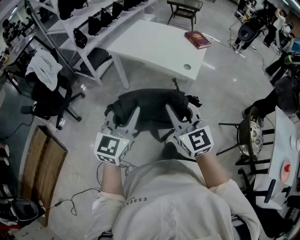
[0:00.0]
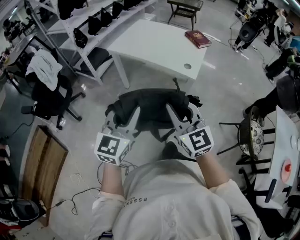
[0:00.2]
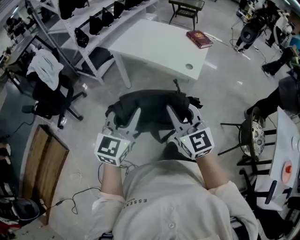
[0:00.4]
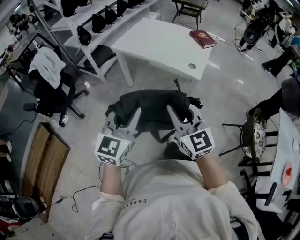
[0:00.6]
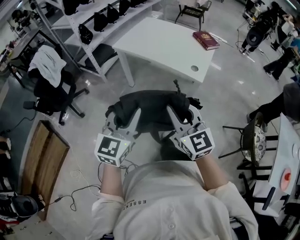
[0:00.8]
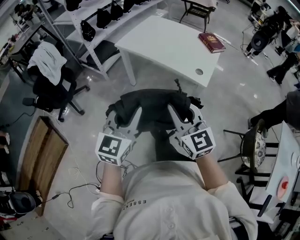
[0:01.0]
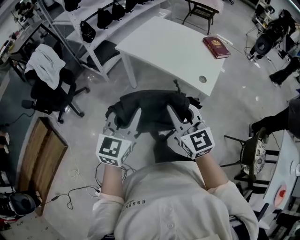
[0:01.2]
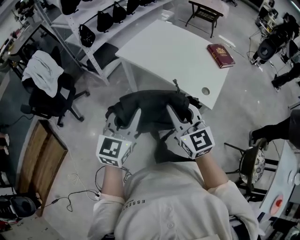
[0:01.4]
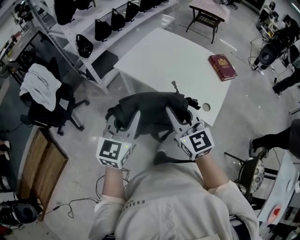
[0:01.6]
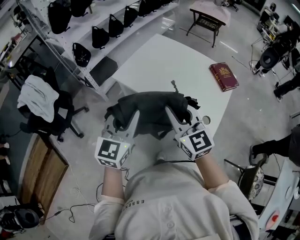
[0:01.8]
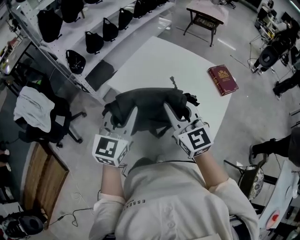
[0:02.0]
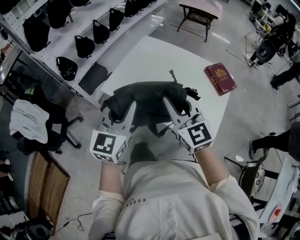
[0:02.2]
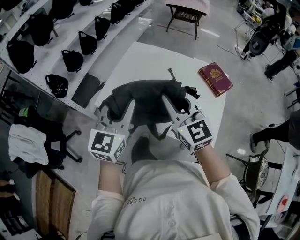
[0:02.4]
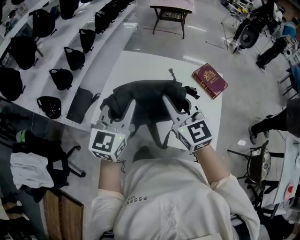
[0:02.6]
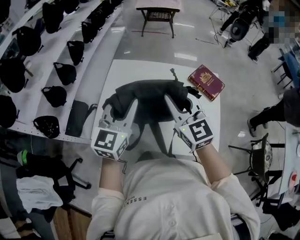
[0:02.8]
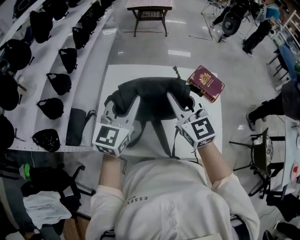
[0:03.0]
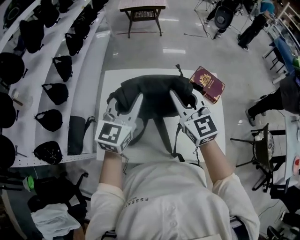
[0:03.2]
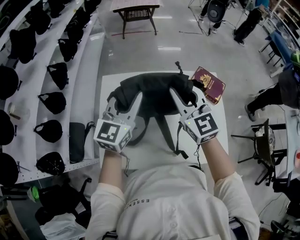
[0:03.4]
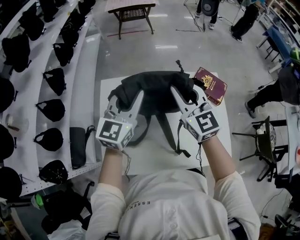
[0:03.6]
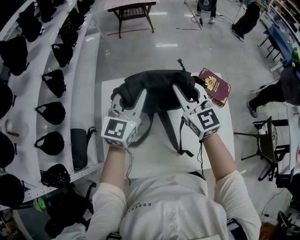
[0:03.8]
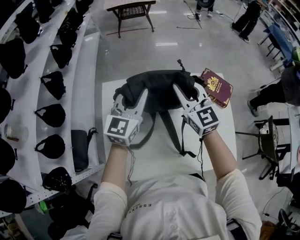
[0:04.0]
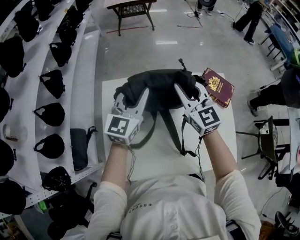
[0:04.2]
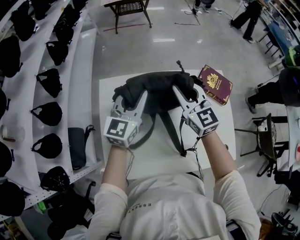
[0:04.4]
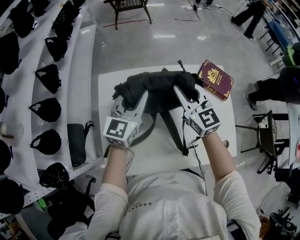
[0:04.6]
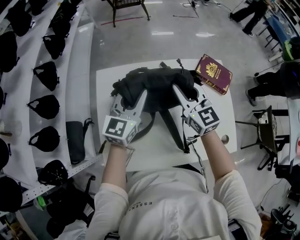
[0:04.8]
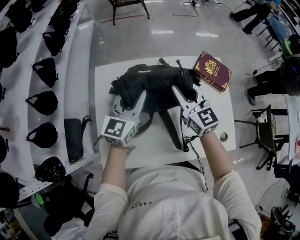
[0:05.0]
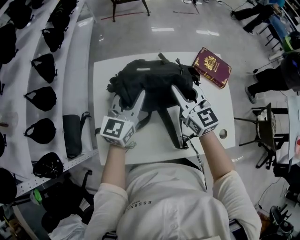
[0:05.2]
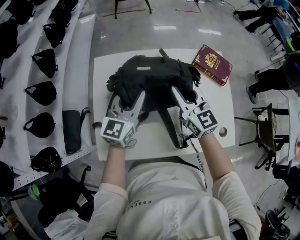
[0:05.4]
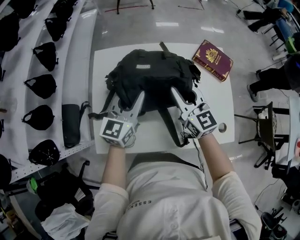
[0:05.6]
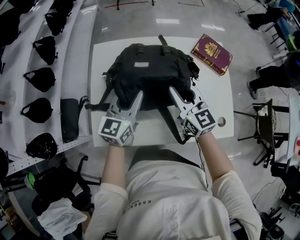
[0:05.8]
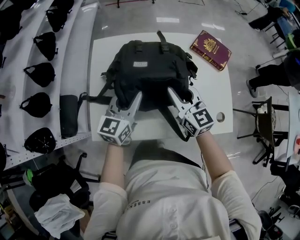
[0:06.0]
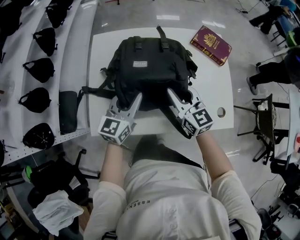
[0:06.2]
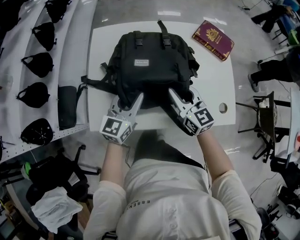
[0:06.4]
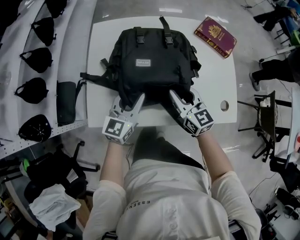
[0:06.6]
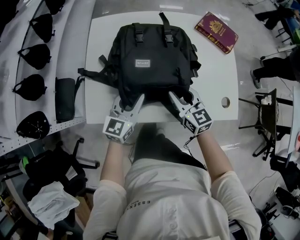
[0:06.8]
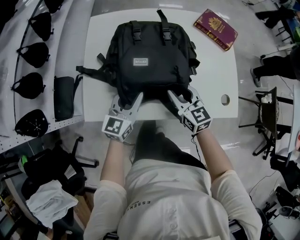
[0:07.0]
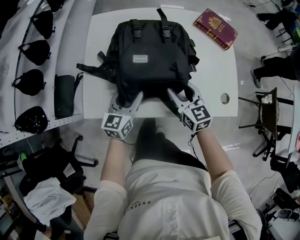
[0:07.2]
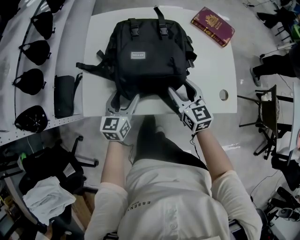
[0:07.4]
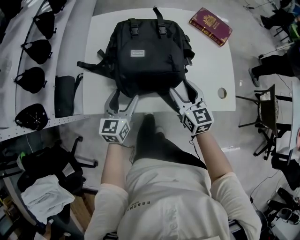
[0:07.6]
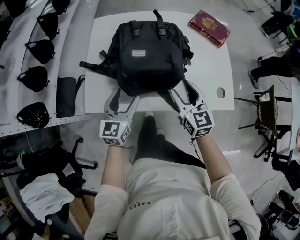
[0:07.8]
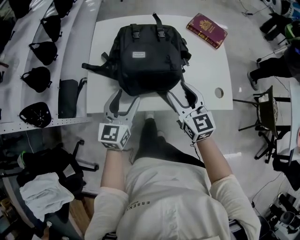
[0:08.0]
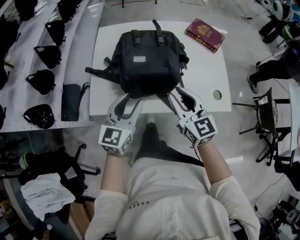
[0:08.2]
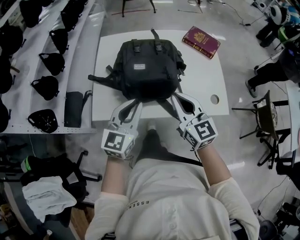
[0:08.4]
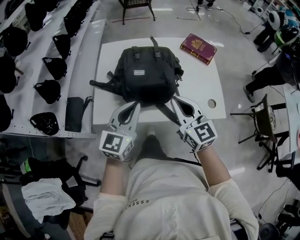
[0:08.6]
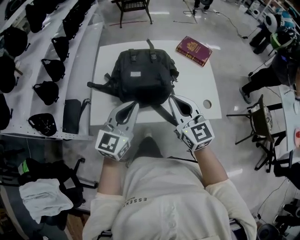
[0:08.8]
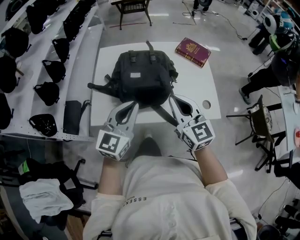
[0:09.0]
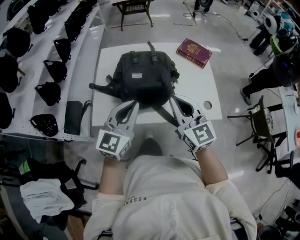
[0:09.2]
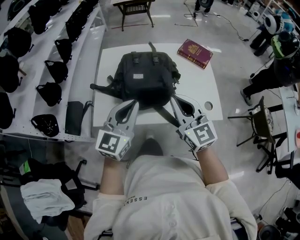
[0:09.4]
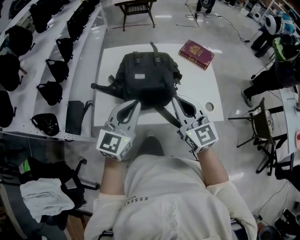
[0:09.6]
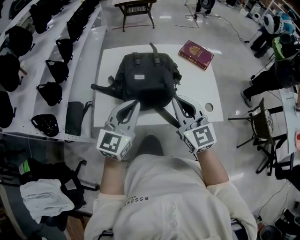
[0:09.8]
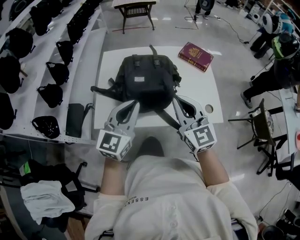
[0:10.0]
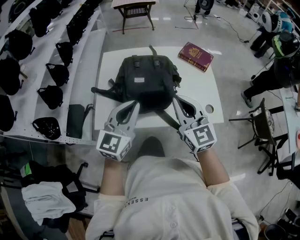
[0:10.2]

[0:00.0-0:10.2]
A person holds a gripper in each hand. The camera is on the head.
0:00.0 to 0:01.4: Both grippers move forward, about 20 cm.
0:01.4 to 0:03.0: Both grippers are carried approximately 50 cm. The left gripper changes its angle by roughly 30 degrees; the right gripper turns by some 30 degrees.
0:03.0 to 0:04.4: Both grippers travel together forward and downward, approximately 20 cm.
0:04.4 to 0:05.8: Both grippers move backward and downward, about 15 cm.
0:05.8 to 0:07.2: Both grippers travel together downward and backward, some 15 cm. The right gripper opens its fingers.
0:07.2 to 0:08.8: The two grippers go roughly 20 cm upward and backward. The left gripper rotates about 20 degrees, and closes. The right gripper closes its fingers.
0:08.8 to 0:10.2: The grippers move only a little.

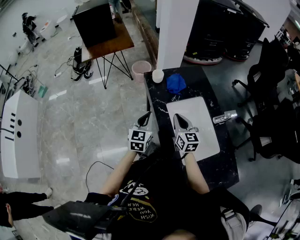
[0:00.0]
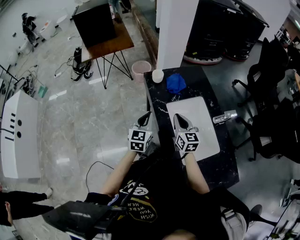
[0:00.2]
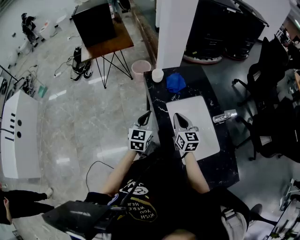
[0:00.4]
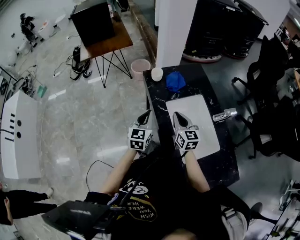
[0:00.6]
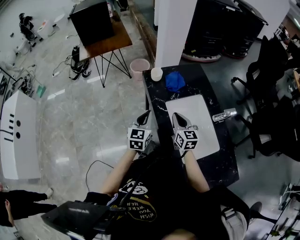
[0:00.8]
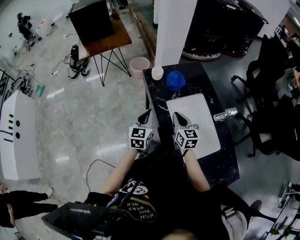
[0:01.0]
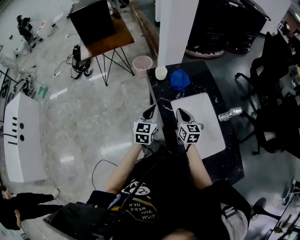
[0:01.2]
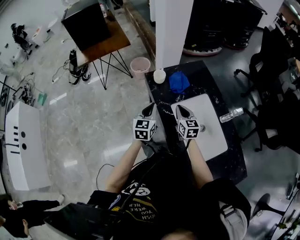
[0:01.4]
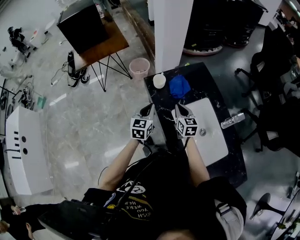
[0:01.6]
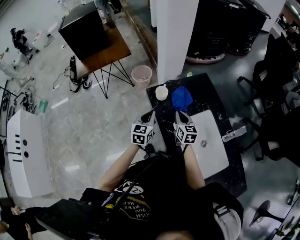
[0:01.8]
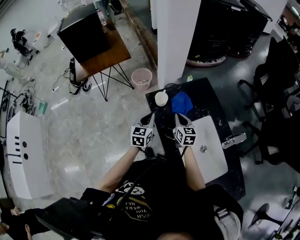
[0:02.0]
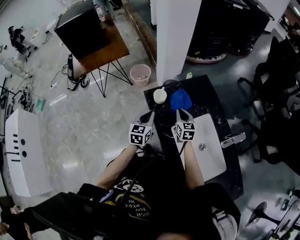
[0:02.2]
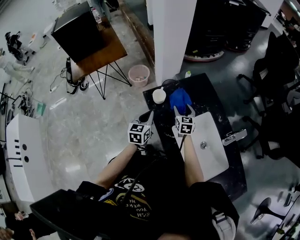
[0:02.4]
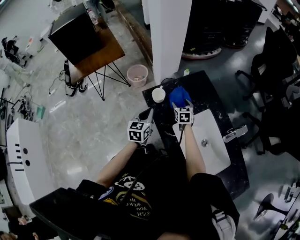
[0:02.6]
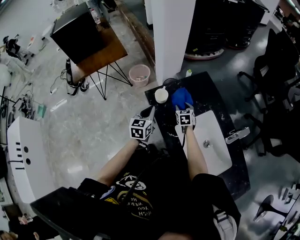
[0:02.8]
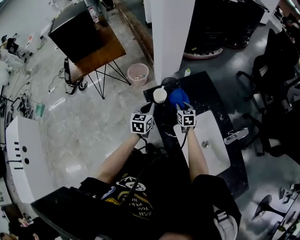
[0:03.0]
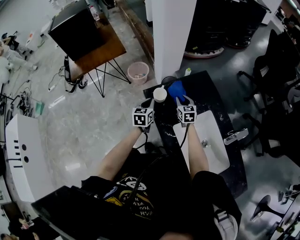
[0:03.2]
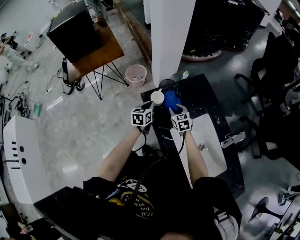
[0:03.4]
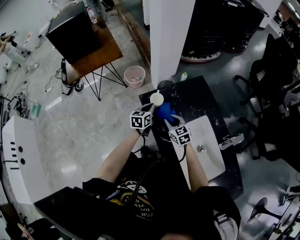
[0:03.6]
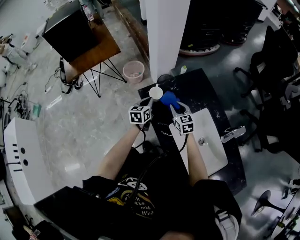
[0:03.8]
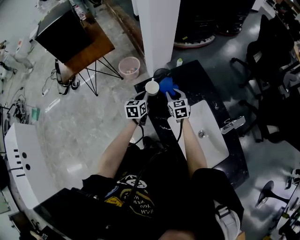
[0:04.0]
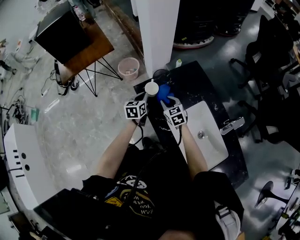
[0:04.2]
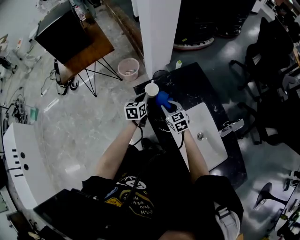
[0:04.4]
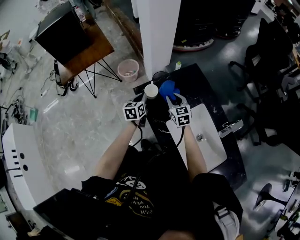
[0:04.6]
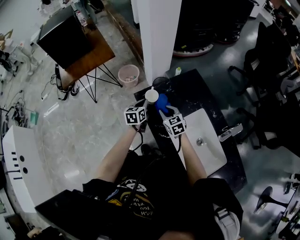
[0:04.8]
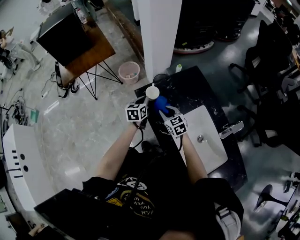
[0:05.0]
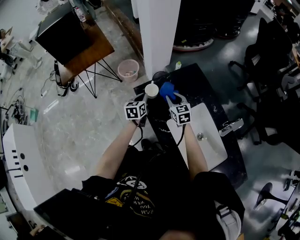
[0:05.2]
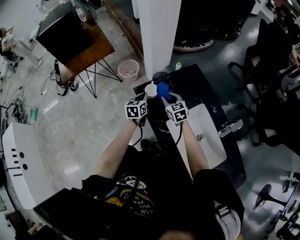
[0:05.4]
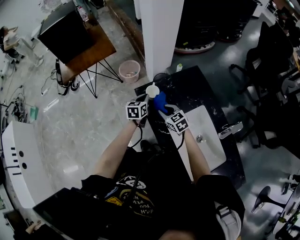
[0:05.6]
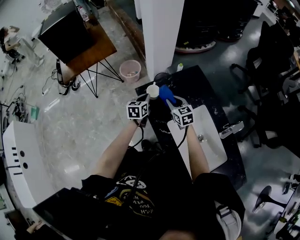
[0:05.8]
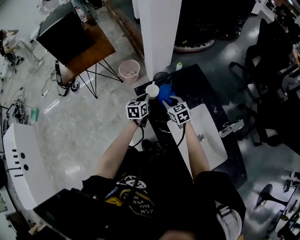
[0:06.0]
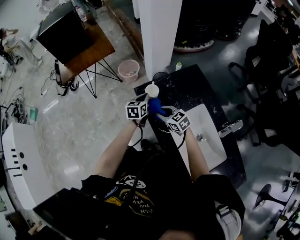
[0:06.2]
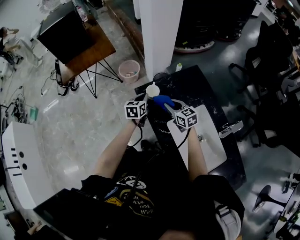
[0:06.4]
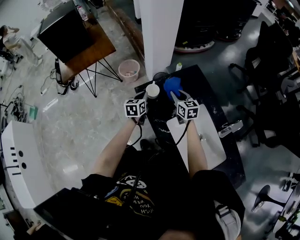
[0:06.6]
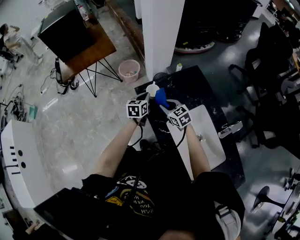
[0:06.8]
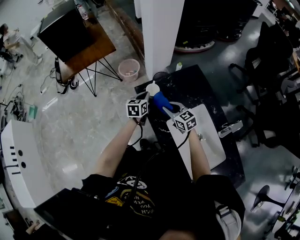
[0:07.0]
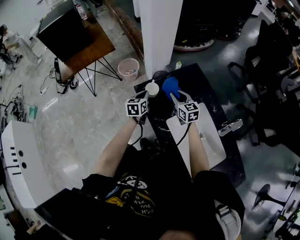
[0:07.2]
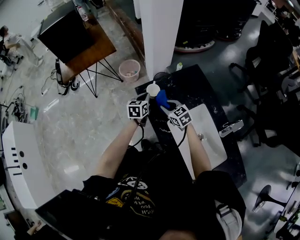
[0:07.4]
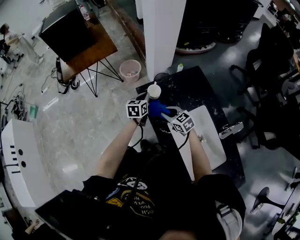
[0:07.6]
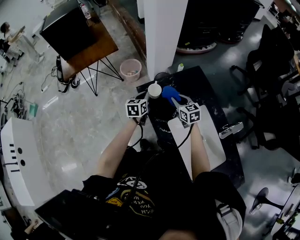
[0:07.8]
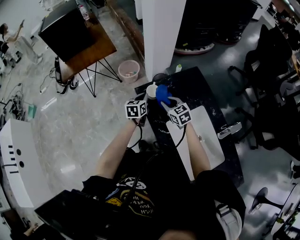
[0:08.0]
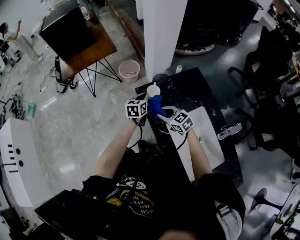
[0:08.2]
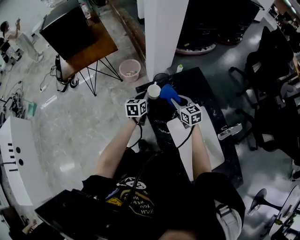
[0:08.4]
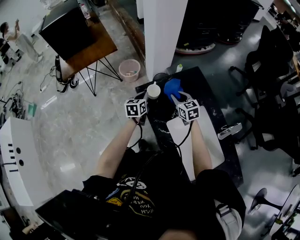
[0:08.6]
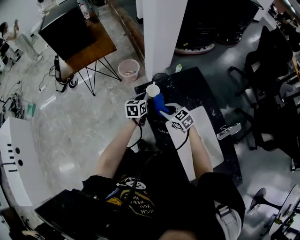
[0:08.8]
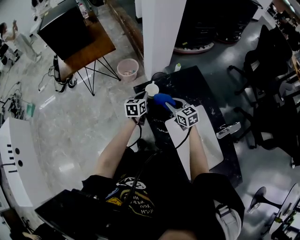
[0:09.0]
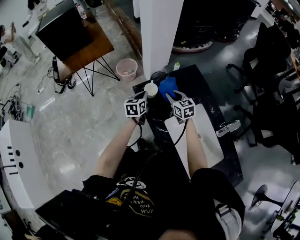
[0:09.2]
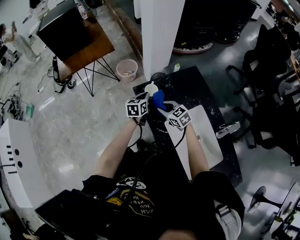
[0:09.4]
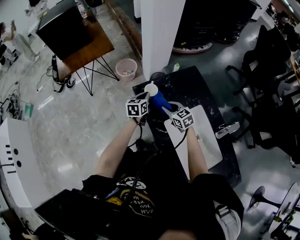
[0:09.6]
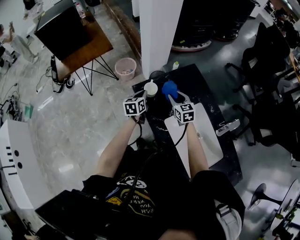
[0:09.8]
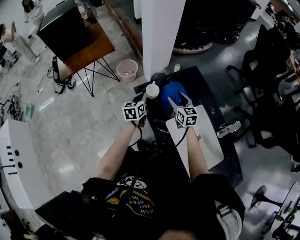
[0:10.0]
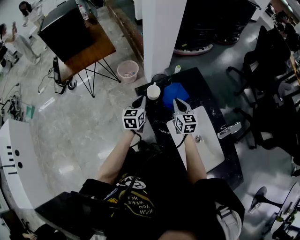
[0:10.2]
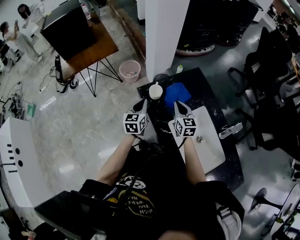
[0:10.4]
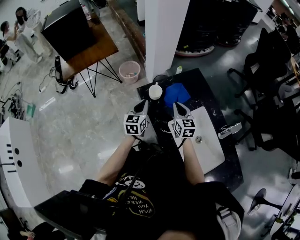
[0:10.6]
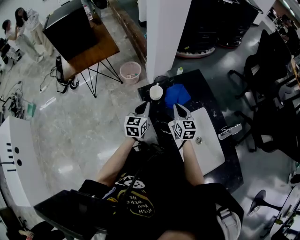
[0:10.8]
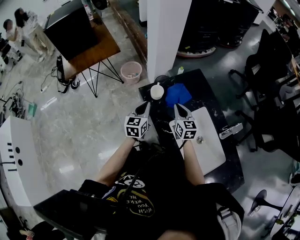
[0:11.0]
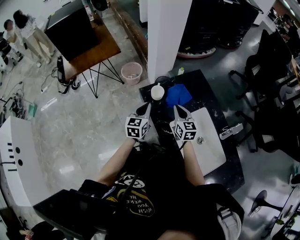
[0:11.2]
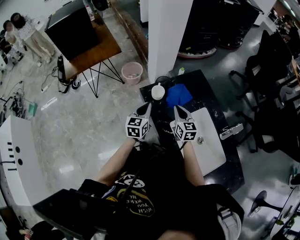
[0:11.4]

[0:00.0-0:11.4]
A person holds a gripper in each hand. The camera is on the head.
0:00.0 to 0:01.4: The left gripper moves forward, about 10 cm, while the right gripper goes some 10 cm forward and downward.
0:01.4 to 0:02.8: The right gripper is displaced forward and downward by approximately 25 cm, swivels some 20 degrees, and opens its fingers. Meanwhile the left gripper goes approximately 15 cm forward.
0:02.8 to 0:04.2: The left gripper heads forward and downward, covering approximately 10 cm, while the right gripper swings forward and backward, some 10 cm each way, with 2 reversals, and closes.
0:04.2 to 0:05.6: The grippers stay close to where they were, moving slightly.
0:05.6 to 0:07.2: The right gripper moves left and right over about 10 cm, changing direction 4 times, and rotates roughly 20 degrees.
0:07.2 to 0:08.6: The right gripper goes left and right, roughly 10 cm each way, reversing 3 times.
0:08.6 to 0:10.0: The right gripper moves left and right over some 10 cm, changing direction 3 times, and opens.
0:10.0 to 0:11.4: Both grippers travel together backward, roughly 5 cm. The right gripper closes up.

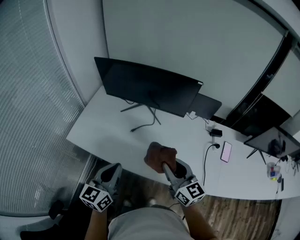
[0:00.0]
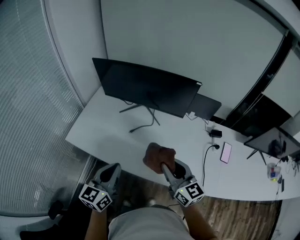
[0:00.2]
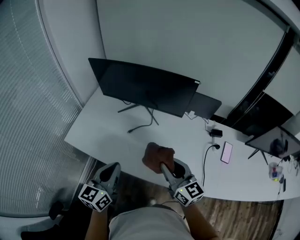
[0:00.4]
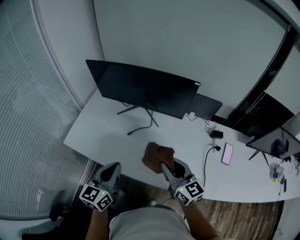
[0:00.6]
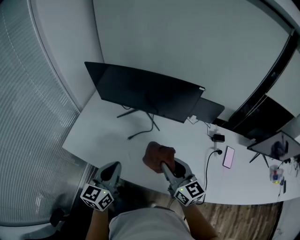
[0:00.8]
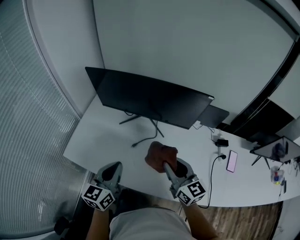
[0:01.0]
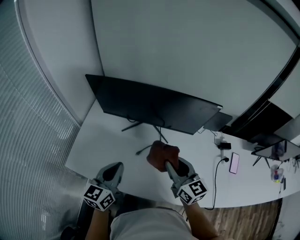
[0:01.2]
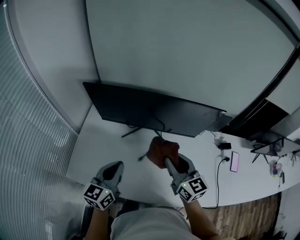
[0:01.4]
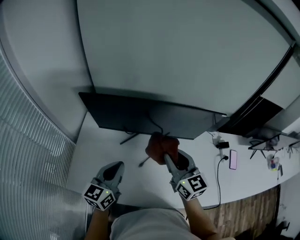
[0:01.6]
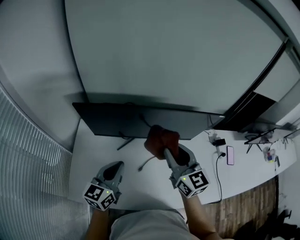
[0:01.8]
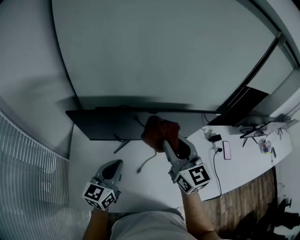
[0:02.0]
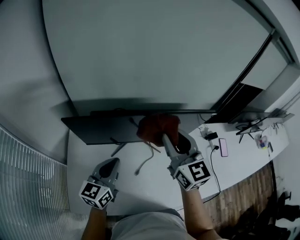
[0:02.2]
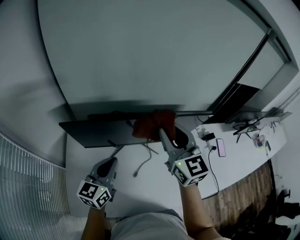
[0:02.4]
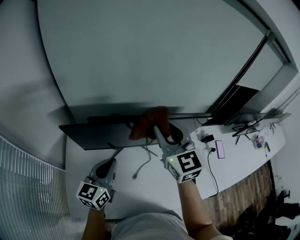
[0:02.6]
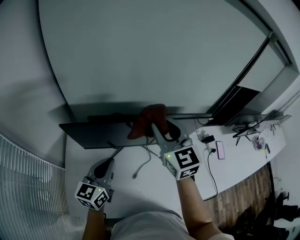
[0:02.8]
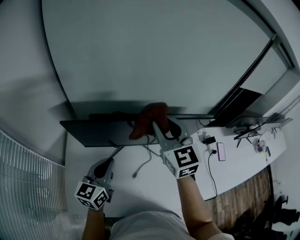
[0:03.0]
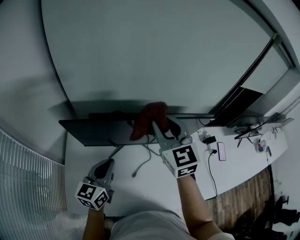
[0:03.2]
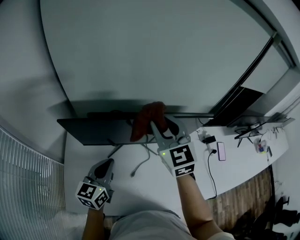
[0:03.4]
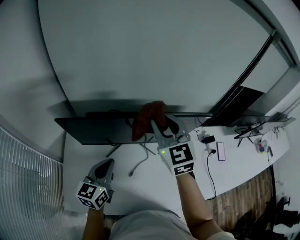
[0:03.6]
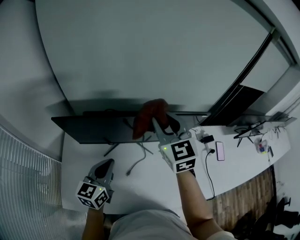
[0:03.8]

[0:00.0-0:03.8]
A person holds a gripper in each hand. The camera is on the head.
0:00.0 to 0:01.2: Both grippers travel together forward, roughly 20 cm.
0:01.2 to 0:02.6: The right gripper travels forward, upward and to the left by about 25 cm, and turns by some 30 degrees. Meanwhile the left gripper goes approximately 20 cm forward, and swivels some 20 degrees.
0:02.6 to 0:03.8: The right gripper ends up some 5 cm from where it was.
